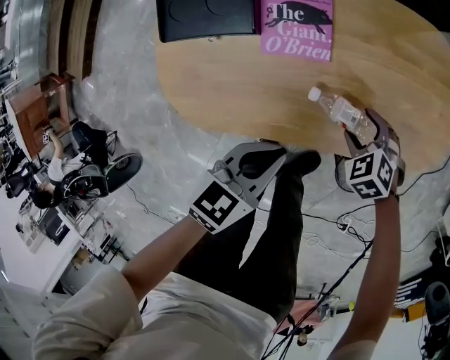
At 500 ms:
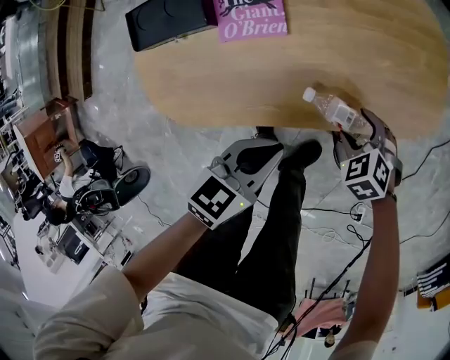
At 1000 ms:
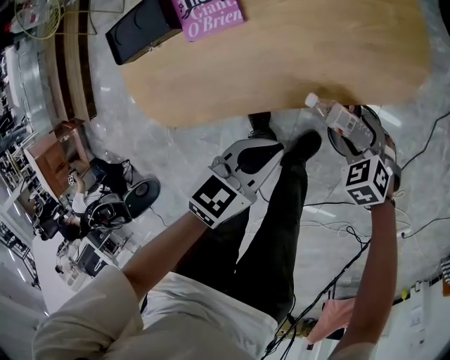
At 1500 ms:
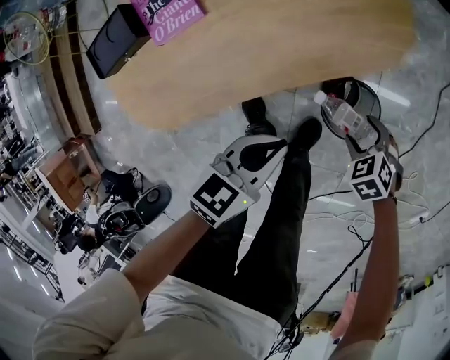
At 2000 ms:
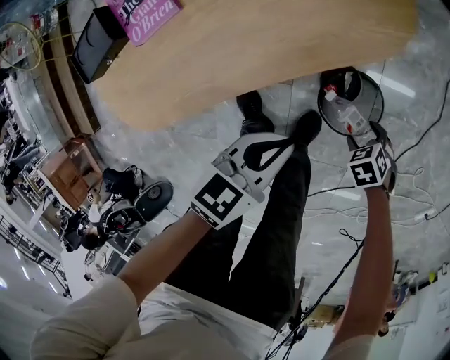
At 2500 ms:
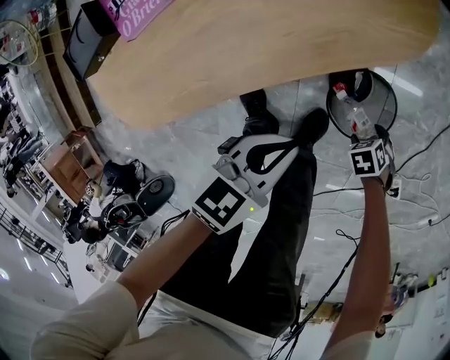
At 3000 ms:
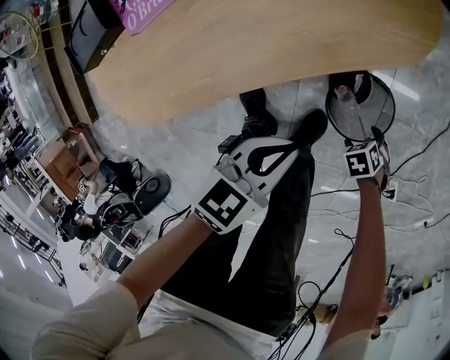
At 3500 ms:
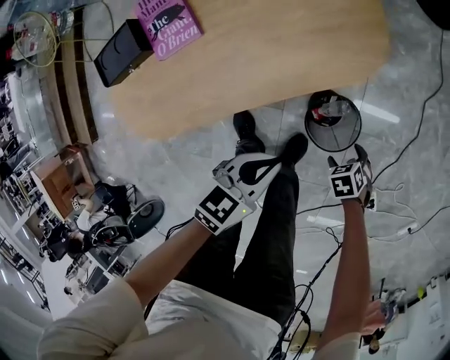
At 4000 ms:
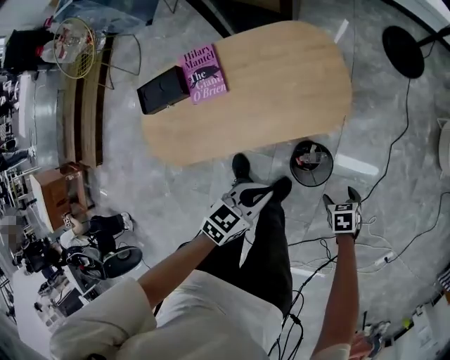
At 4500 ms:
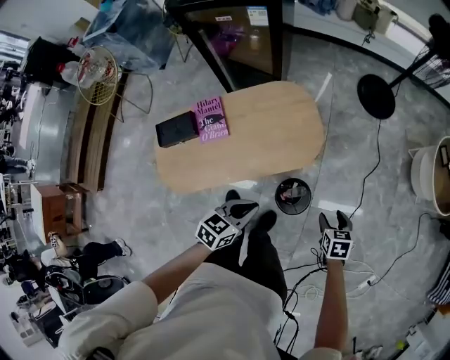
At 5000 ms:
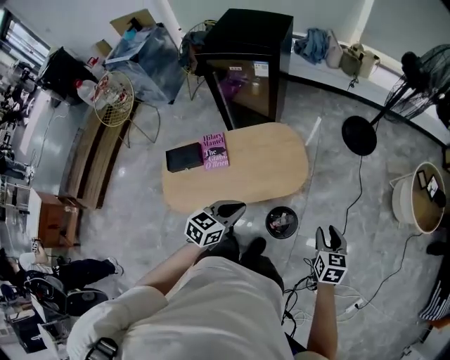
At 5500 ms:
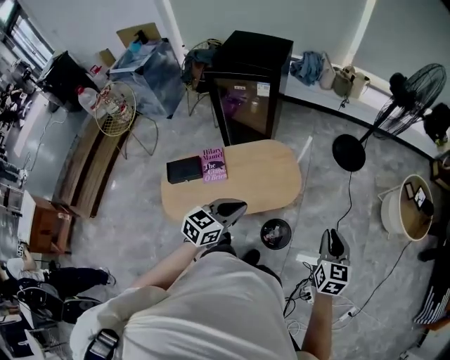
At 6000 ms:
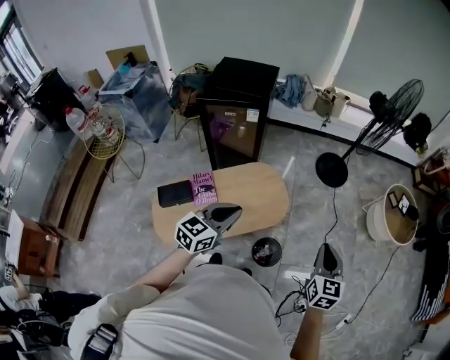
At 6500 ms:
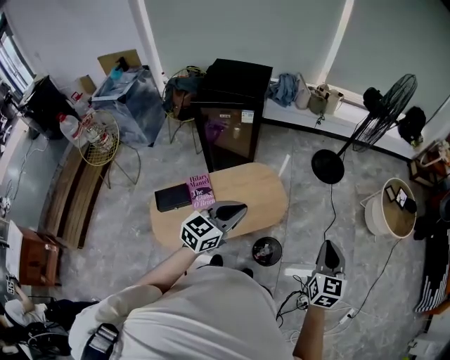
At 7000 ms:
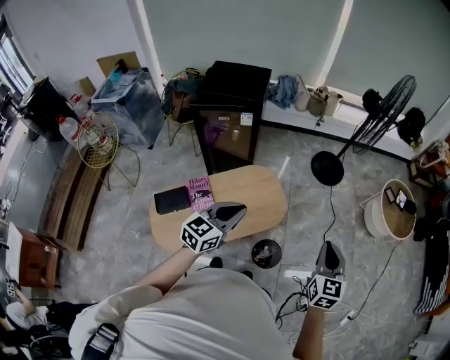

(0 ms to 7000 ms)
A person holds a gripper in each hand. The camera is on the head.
0 ms - 2000 ms: The right gripper moves some 40 cm, and rolls clockwise, seen from behind, by some 40 degrees. Meanwhile the left gripper ends up roughly 30 cm from where it was, and rotates about 20 degrees.
2000 ms - 3500 ms: The left gripper heads upward, covering approximately 5 cm.
3500 ms - 5000 ms: Both grippers move upward, roughly 50 cm. The right gripper angles its fingers upward, by some 40 degrees, and closes its fingers.
5000 ms - 7000 ms: The grippers both shift upward by roughly 20 cm. The right gripper rotates approximately 30 degrees, and closes; the left gripper swivels approximately 20 degrees.

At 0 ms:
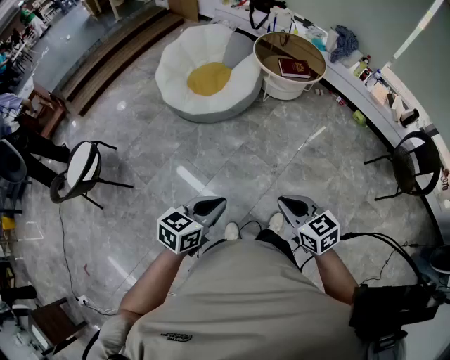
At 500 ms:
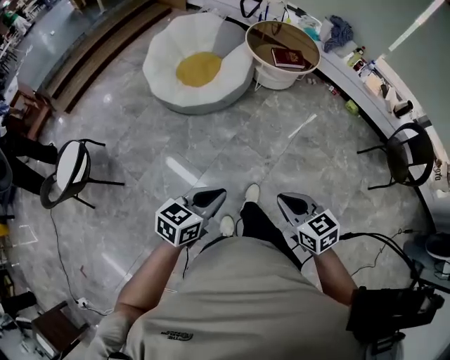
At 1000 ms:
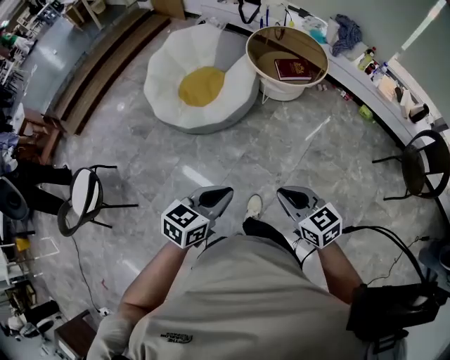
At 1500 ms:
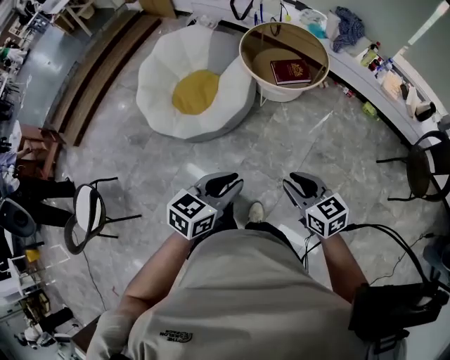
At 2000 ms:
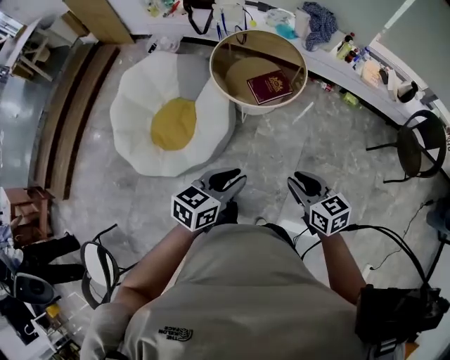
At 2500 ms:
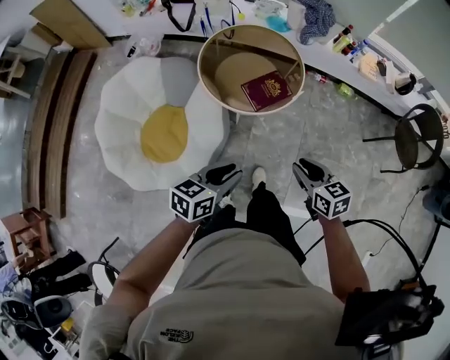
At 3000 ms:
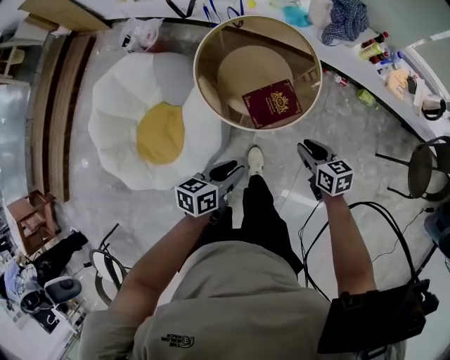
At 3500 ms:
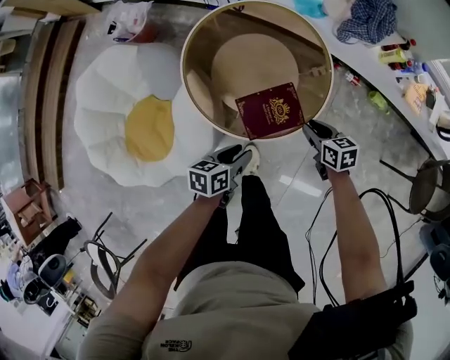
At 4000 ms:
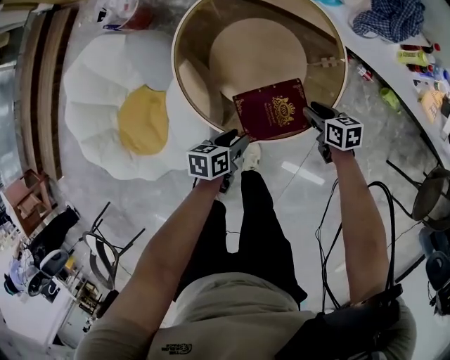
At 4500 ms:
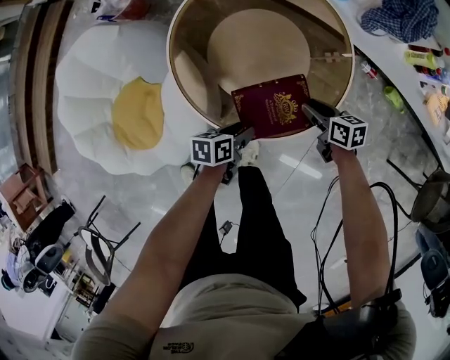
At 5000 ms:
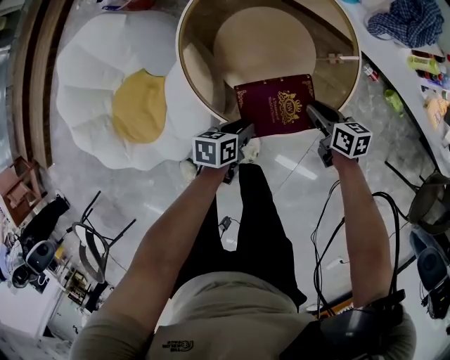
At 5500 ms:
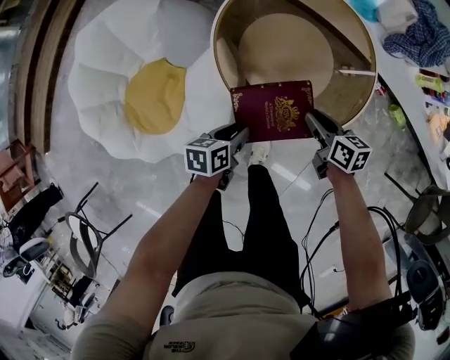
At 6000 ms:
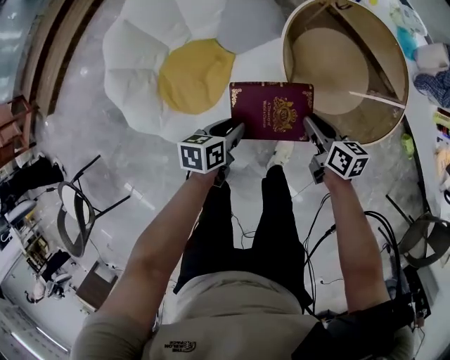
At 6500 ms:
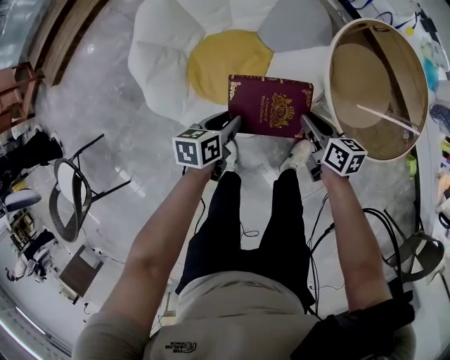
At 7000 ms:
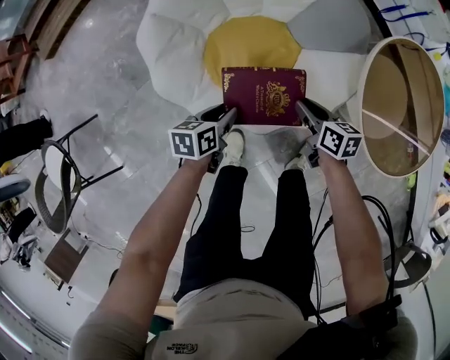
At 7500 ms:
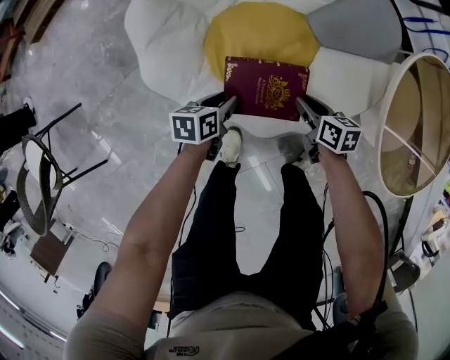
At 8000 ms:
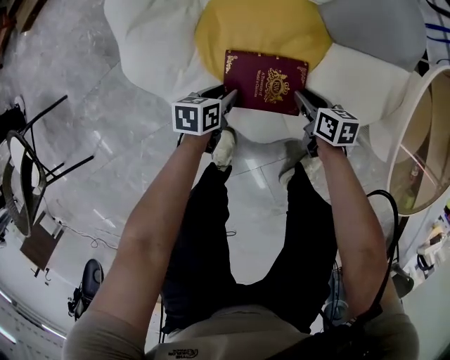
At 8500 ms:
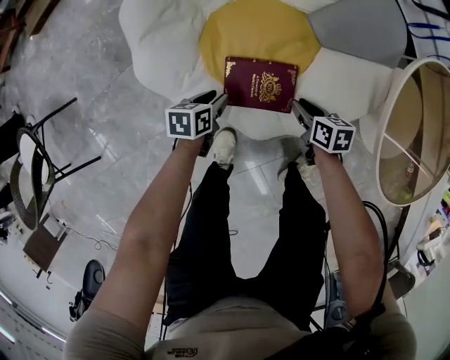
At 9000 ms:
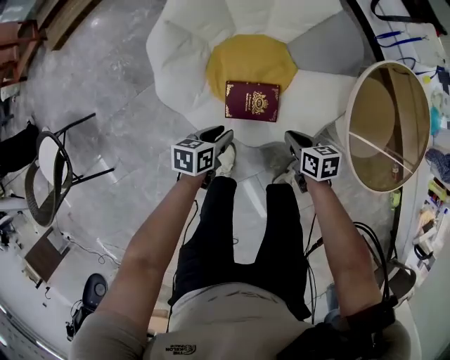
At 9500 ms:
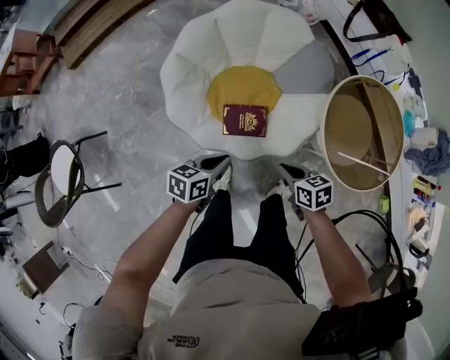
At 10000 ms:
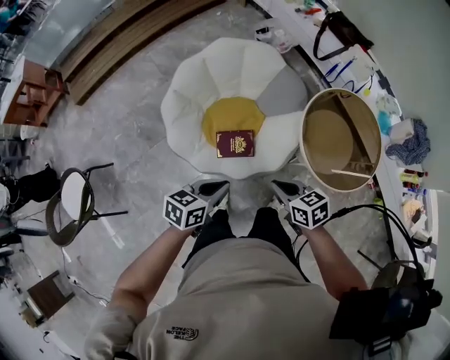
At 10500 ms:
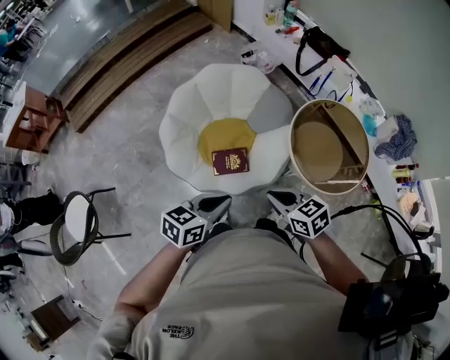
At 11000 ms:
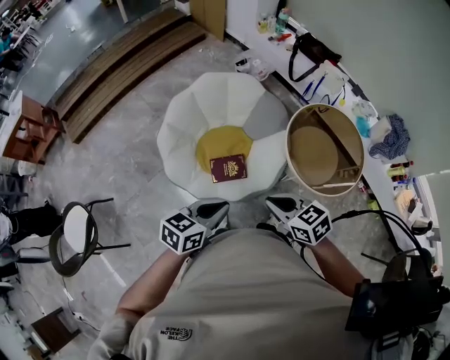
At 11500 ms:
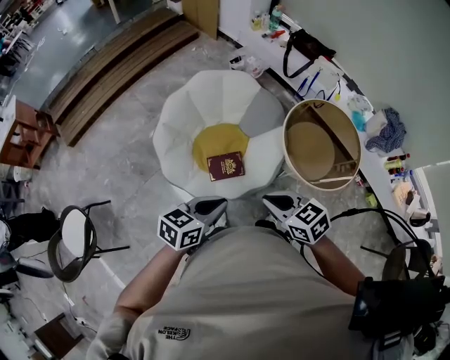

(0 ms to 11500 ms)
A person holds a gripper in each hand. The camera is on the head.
0 ms - 2000 ms: Both grippers are carried forward, some 50 cm. The right gripper changes its angle by roughly 30 degrees, and opens its fingers. Meanwhile the left gripper changes its angle by roughly 20 degrees.
2000 ms - 4000 ms: The pair of grippers is taken forward, roughly 50 cm. The two grippers go approximately 40 cm downward. The right gripper turns by roughly 30 degrees; the left gripper changes its angle by about 40 degrees, and opens.
4000 ms - 6000 ms: The two grippers go about 30 cm to the left.
6000 ms - 7500 ms: The two grippers go about 35 cm to the left and downward. The right gripper changes its angle by roughly 20 degrees.
7500 ms - 9500 ms: The left gripper is displaced upward by approximately 30 cm, and closes its fingers, while the right gripper travels upward and backward by approximately 30 cm.
9500 ms - 11500 ms: The grippers both shift upward by approximately 25 cm. The right gripper swivels about 20 degrees. Meanwhile the left gripper turns by approximately 30 degrees.

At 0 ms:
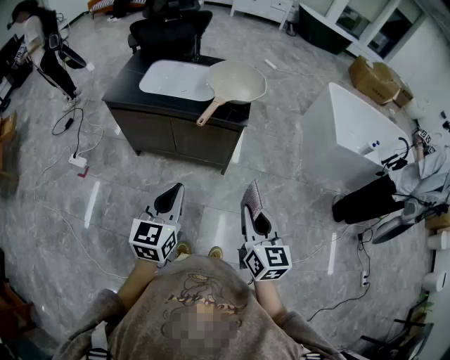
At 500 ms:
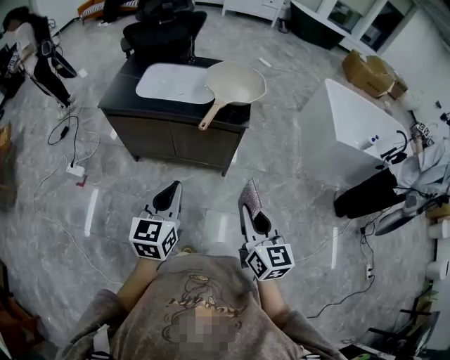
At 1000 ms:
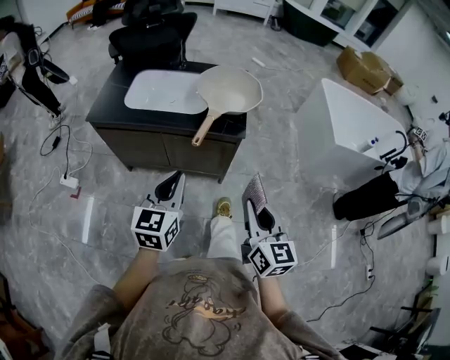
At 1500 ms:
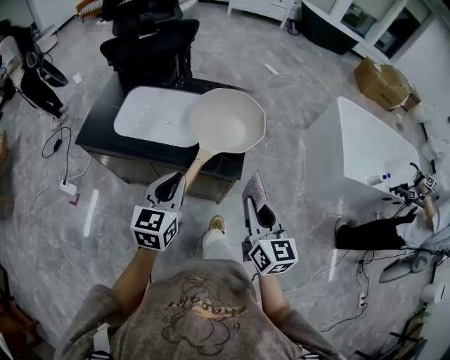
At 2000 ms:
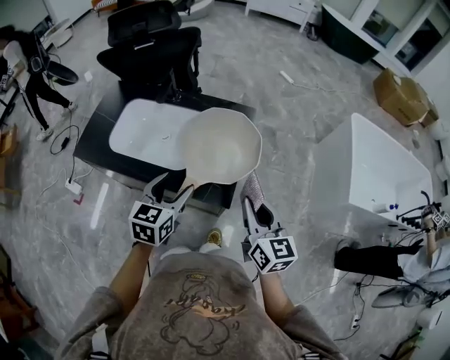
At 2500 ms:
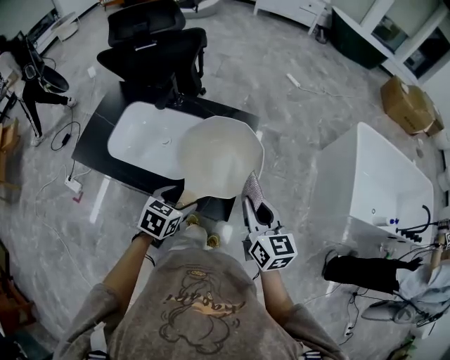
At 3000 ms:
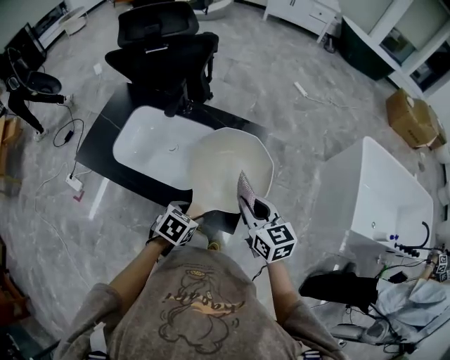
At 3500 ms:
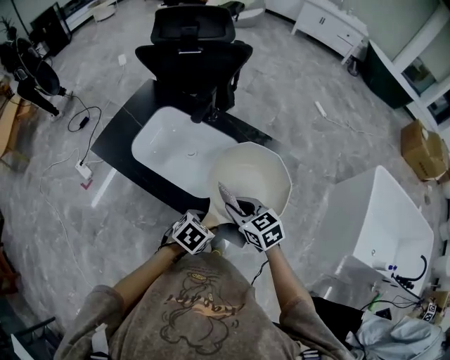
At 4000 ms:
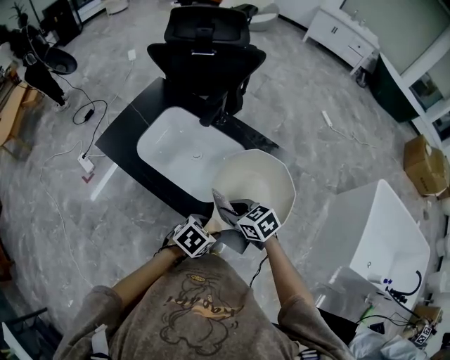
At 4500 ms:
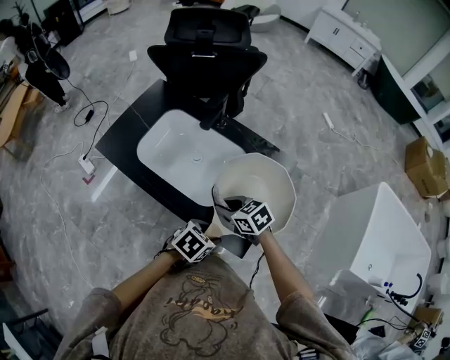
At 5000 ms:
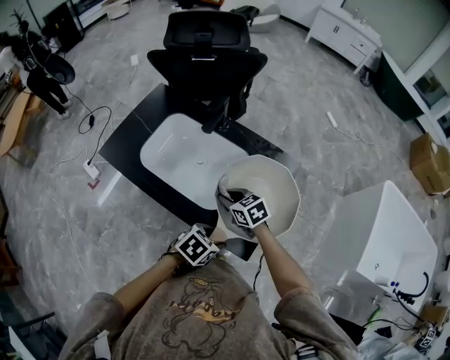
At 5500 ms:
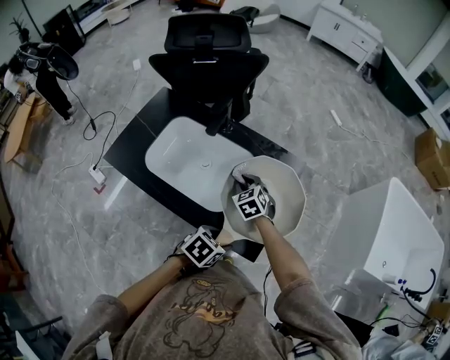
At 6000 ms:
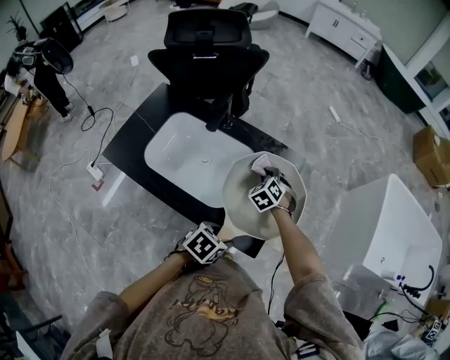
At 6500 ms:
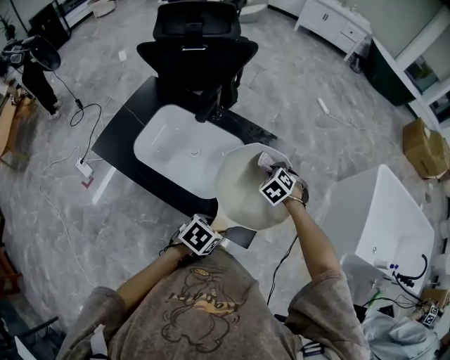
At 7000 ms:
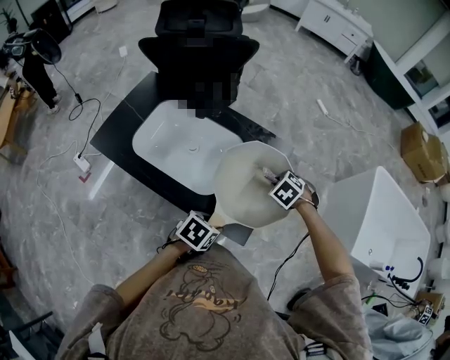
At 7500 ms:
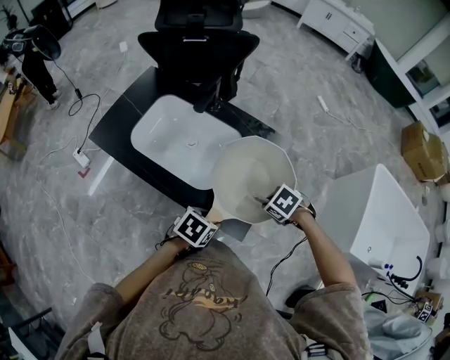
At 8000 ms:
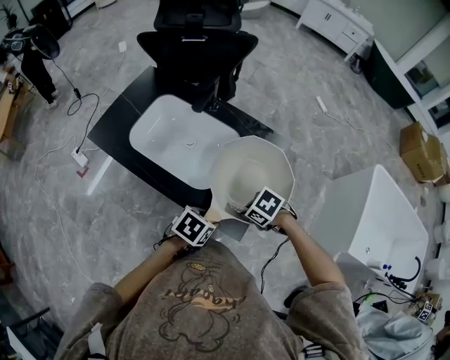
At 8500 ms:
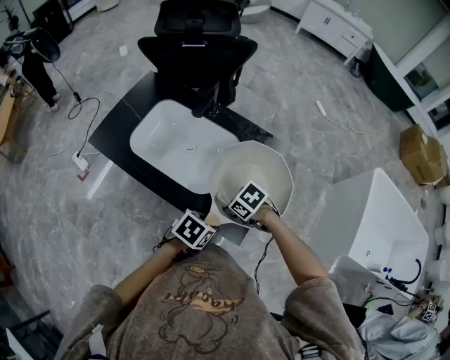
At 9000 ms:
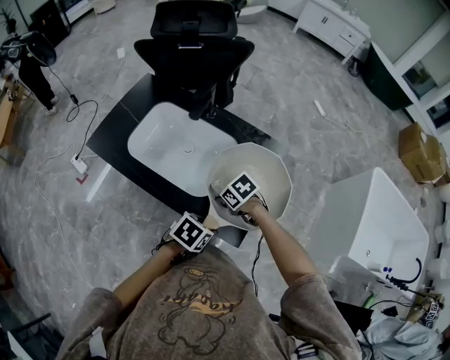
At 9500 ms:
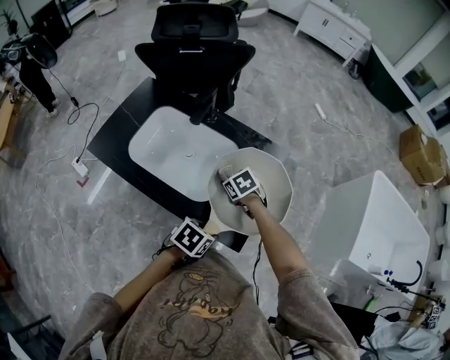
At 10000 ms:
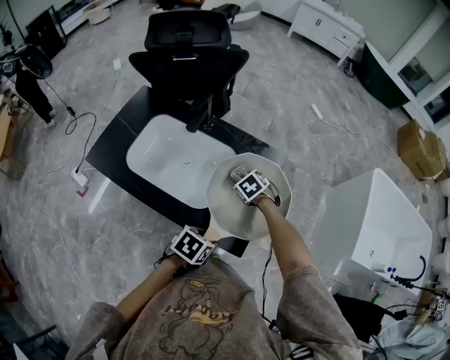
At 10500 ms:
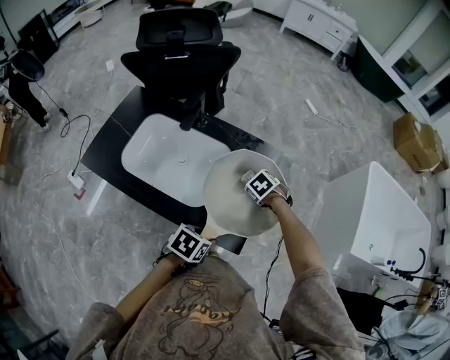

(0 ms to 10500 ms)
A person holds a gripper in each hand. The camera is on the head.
0 ms - 2000 ms: The grippers both shift forward by approximately 40 cm. The left gripper opens up.
2000 ms - 4000 ms: The right gripper moves some 25 cm, and tips its fingers downward by approximately 30 degrees; the left gripper is displaced downward by some 15 cm, and turns by roughly 40 degrees.
4000 ms - 6500 ms: The right gripper ends up approximately 20 cm from where it was, and swivels roughly 50 degrees.
6500 ms - 8500 ms: The right gripper ends up approximately 20 cm from where it was, and turns by approximately 50 degrees.
8500 ms - 10500 ms: The right gripper shifts by approximately 20 cm, and swivels about 30 degrees.
